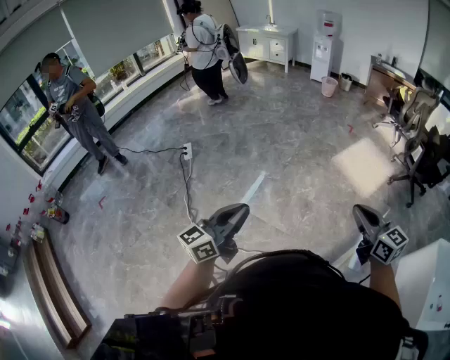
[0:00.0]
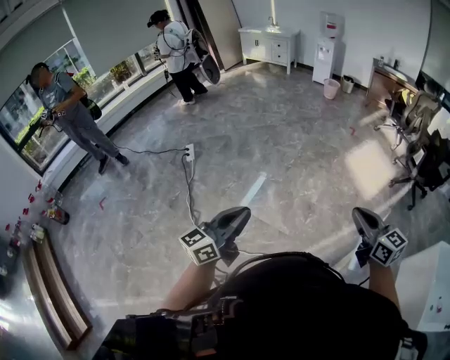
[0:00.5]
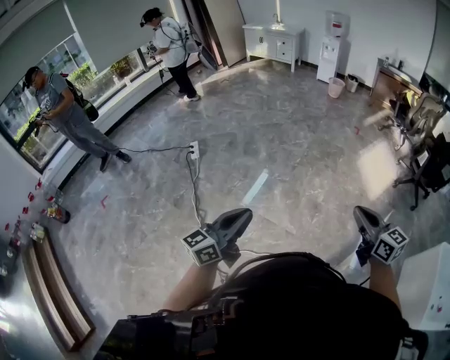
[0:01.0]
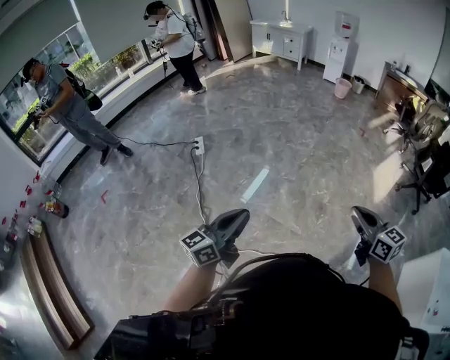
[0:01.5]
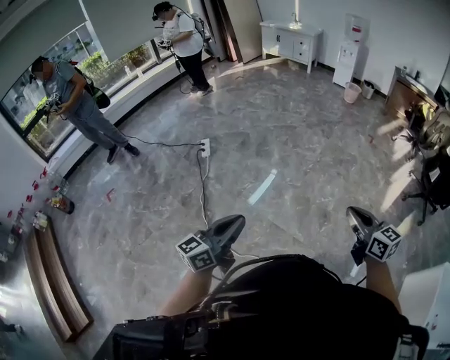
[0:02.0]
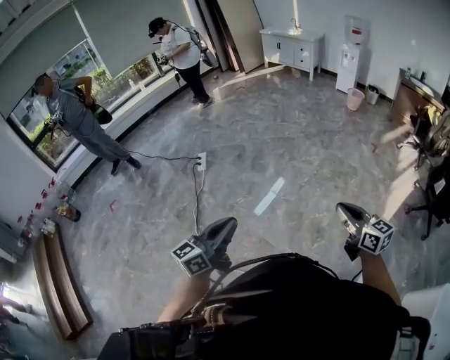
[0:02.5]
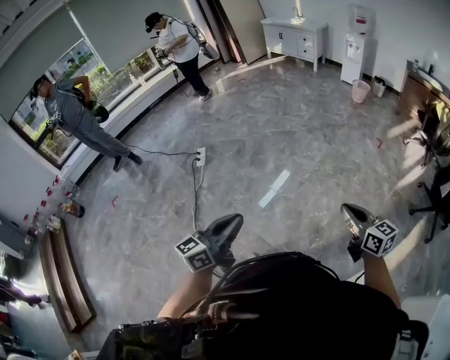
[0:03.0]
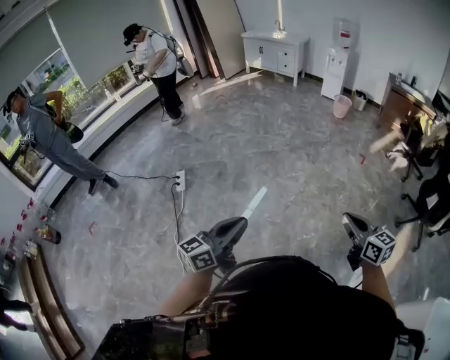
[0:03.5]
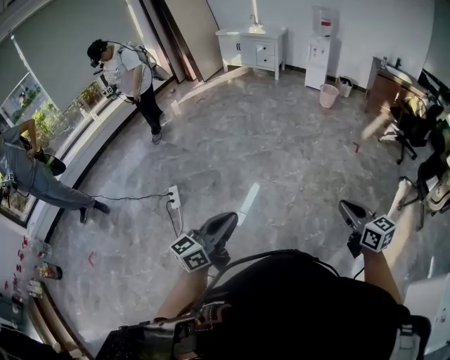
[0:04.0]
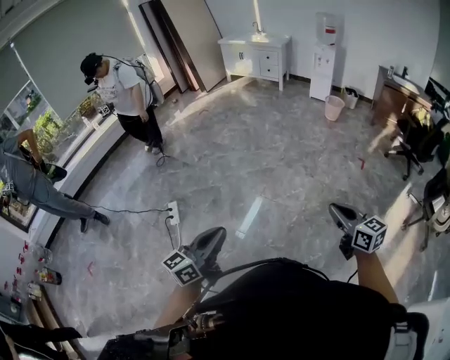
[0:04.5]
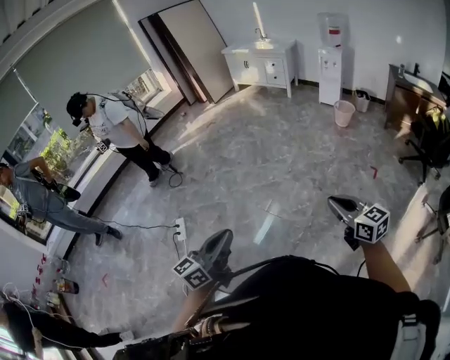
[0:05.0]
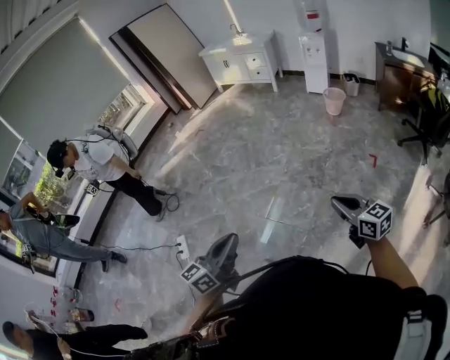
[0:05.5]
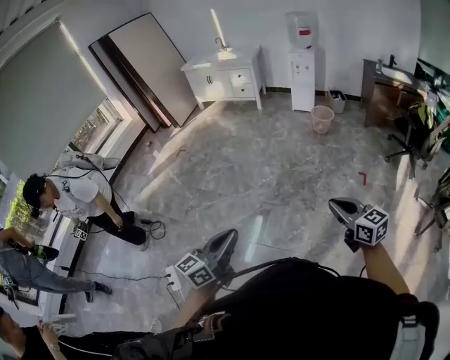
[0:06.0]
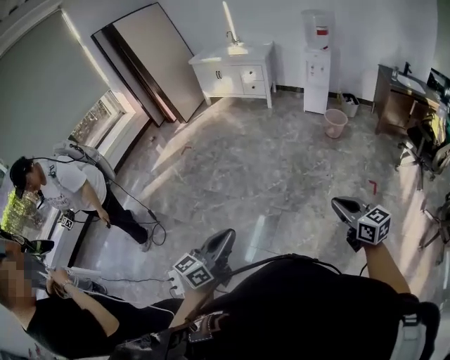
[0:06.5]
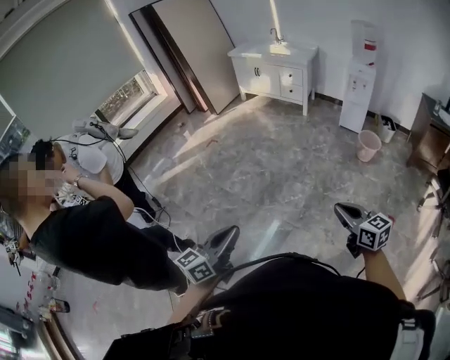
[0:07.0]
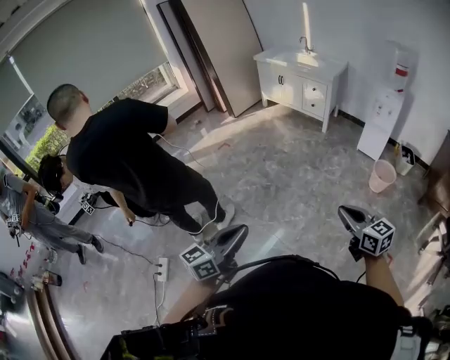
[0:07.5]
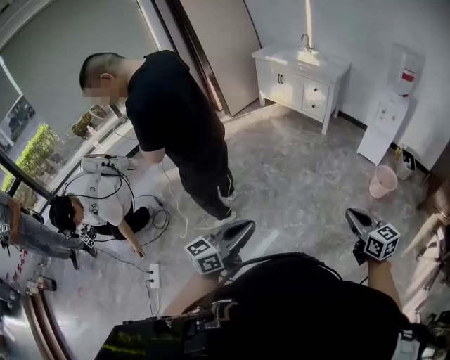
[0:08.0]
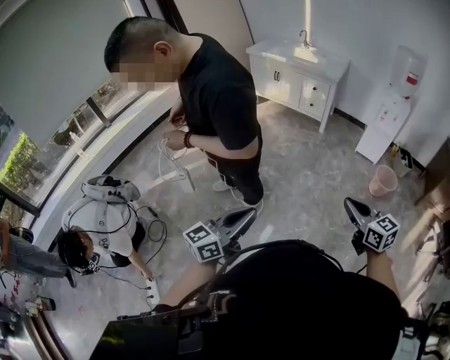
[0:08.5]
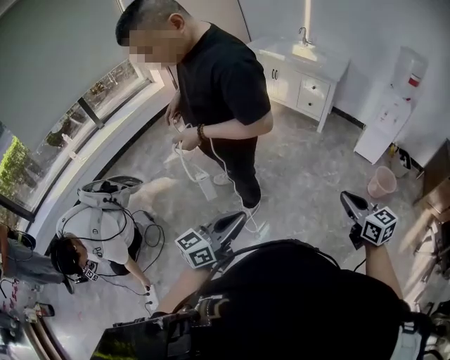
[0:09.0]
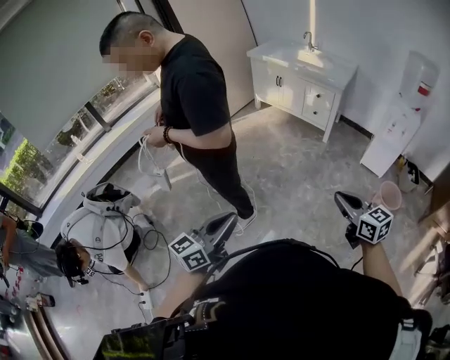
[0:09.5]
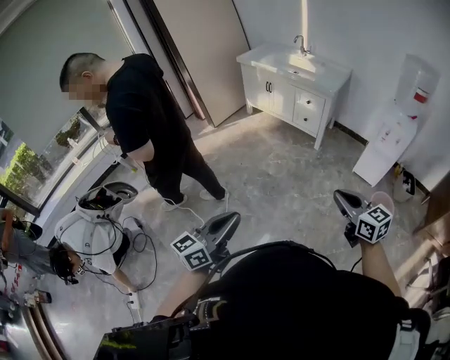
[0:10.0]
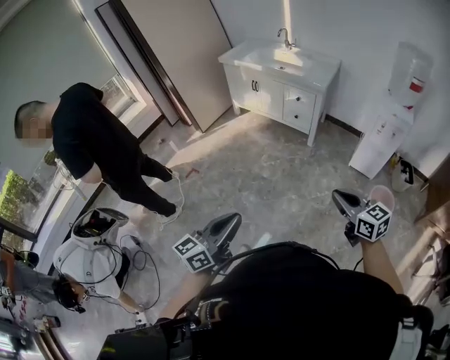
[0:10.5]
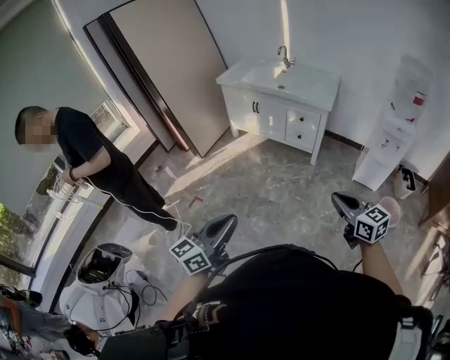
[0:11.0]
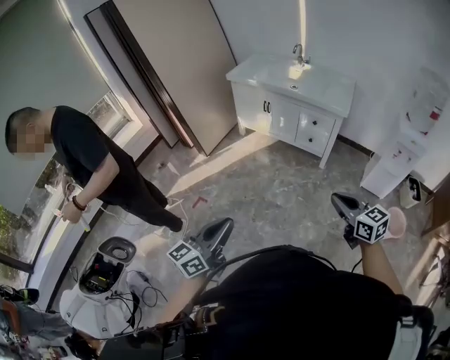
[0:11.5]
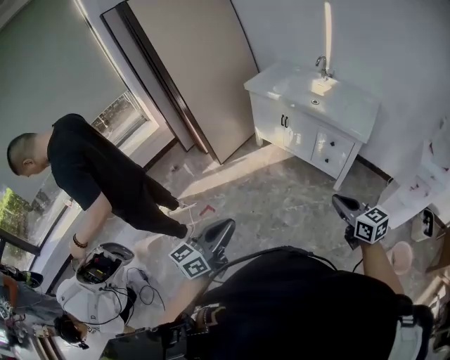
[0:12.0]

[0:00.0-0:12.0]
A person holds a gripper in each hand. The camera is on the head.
0:00.0 to 0:02.0: The right gripper is displaced to the left and forward by some 20 cm. The left gripper travels to the left by some 20 cm.
0:02.0 to 0:04.0: The two grippers travel together, forward, some 50 cm.
0:04.0 to 0:06.0: Both grippers are carried forward, some 60 cm.
0:06.0 to 0:08.0: The pair of grippers is taken forward, about 50 cm.
0:08.0 to 0:10.0: Both grippers travel together forward, roughly 40 cm.
0:10.0 to 0:12.0: The two grippers travel together, forward, about 50 cm.

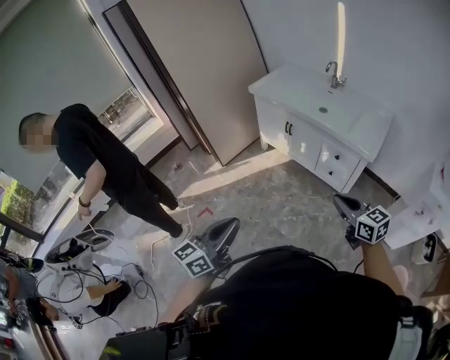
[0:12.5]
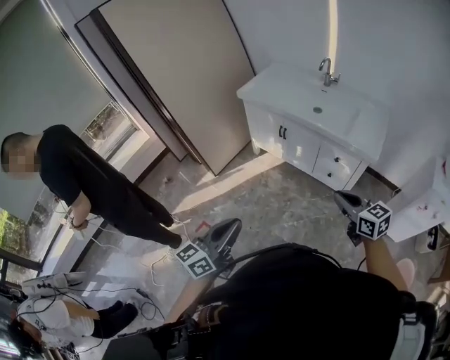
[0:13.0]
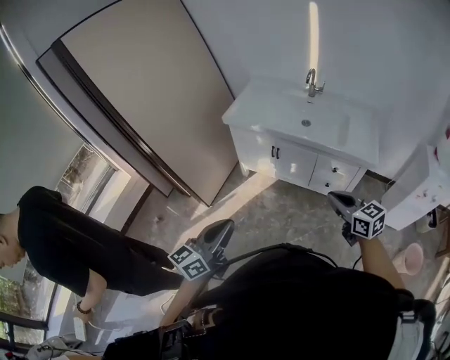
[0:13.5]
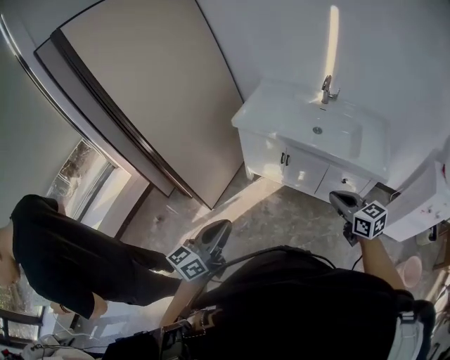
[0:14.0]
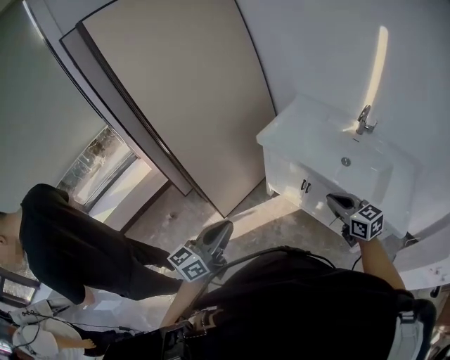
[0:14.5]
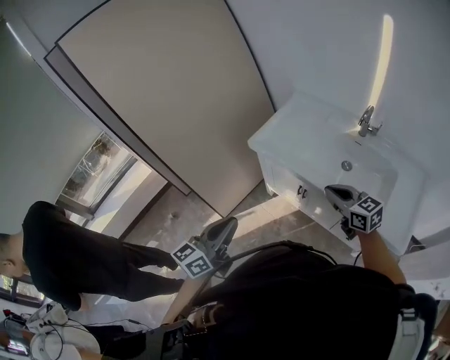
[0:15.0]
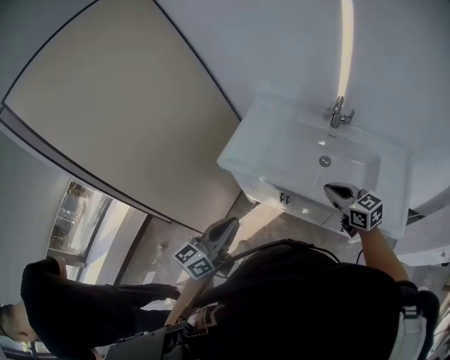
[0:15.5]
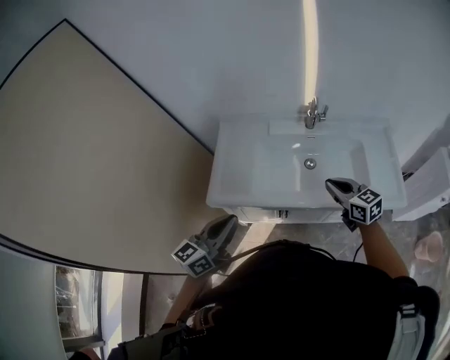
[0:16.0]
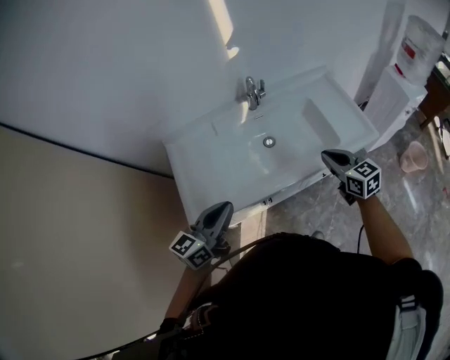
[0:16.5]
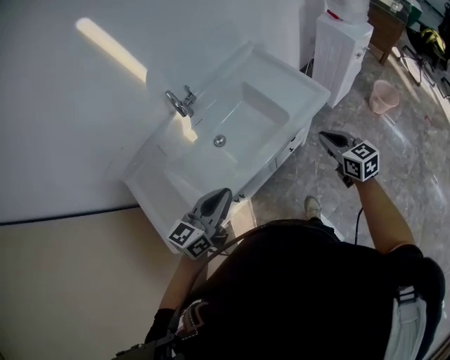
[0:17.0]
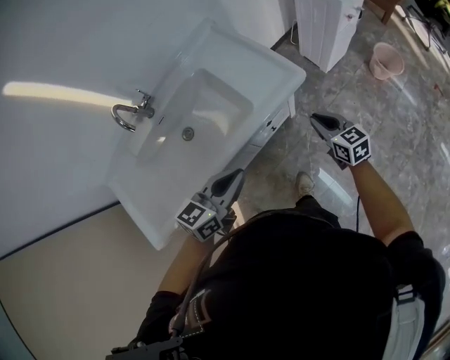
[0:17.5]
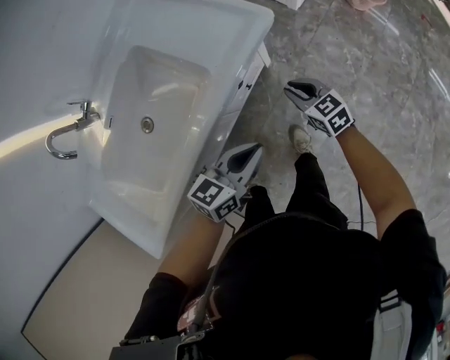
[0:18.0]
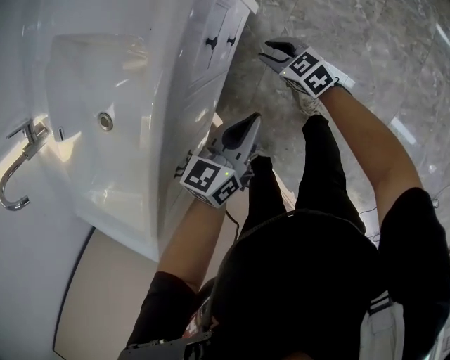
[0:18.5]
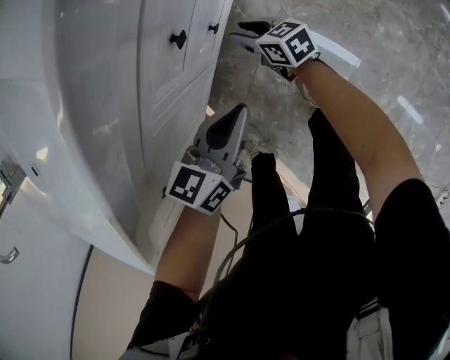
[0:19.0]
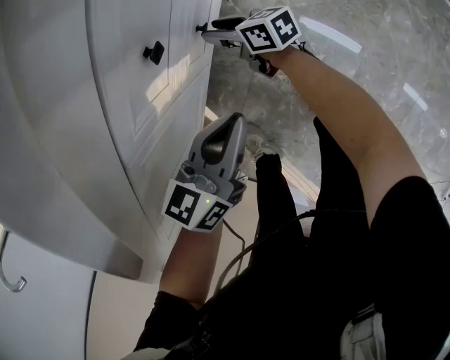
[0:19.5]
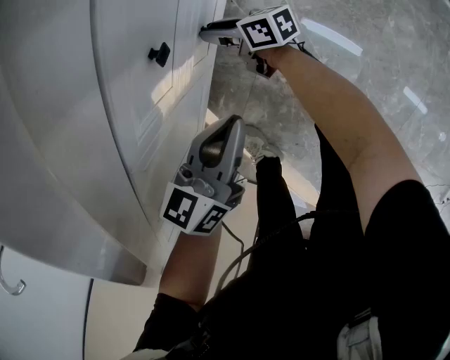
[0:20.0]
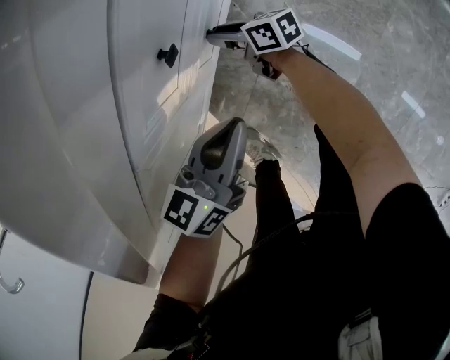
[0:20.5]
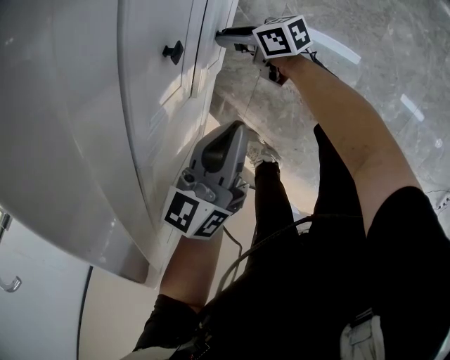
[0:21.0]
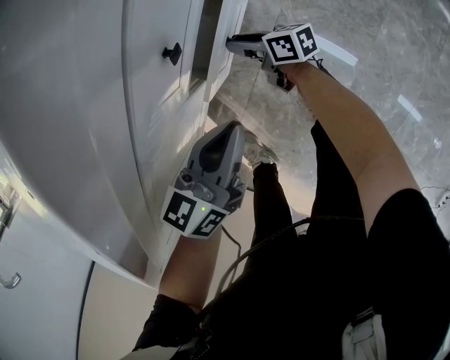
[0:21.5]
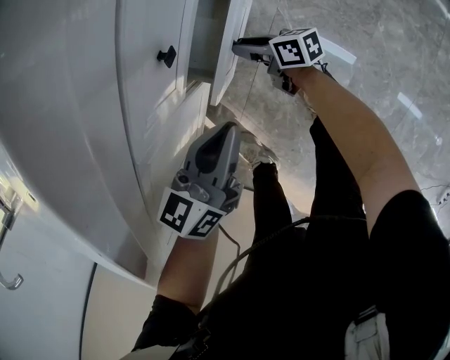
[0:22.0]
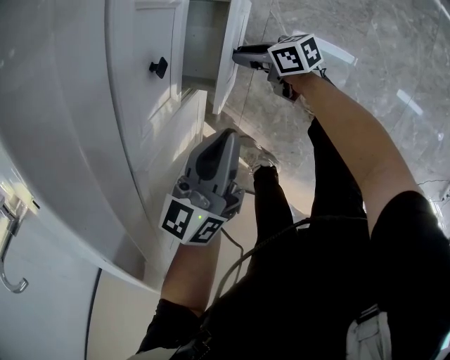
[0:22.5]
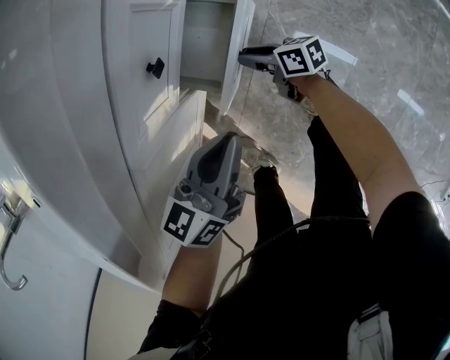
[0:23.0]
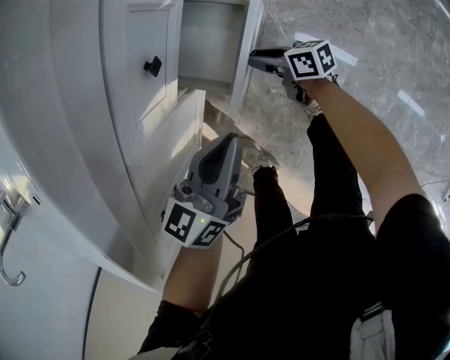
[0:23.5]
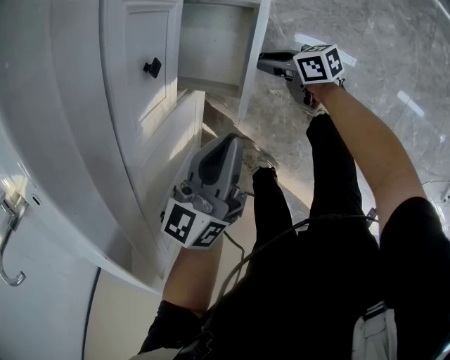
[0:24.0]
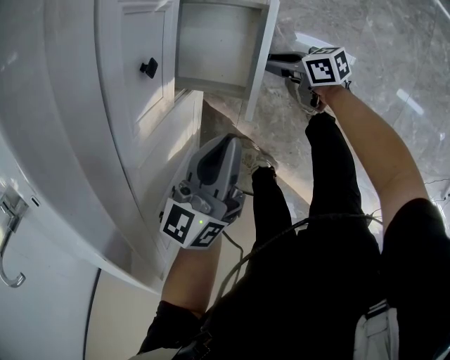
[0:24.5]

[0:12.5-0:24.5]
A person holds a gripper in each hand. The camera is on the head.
0:12.5 to 0:14.5: Both grippers are carried forward, about 50 cm.
0:14.5 to 0:16.5: The left gripper changes place by about 50 cm, and turns by roughly 60 degrees. Meanwhile the right gripper changes place by about 25 cm, and rotates about 60 degrees.
0:16.5 to 0:18.5: The left gripper changes place by roughly 70 cm, and rotates approximately 50 degrees. The right gripper shifts roughly 60 cm downward, rotates roughly 30 degrees, and opens its fingers.
0:18.5 to 0:20.5: The left gripper is displaced downward by roughly 10 cm, while the right gripper is displaced downward, to the left and forward by some 20 cm, and turns by roughly 50 degrees.
0:20.5 to 0:22.5: The right gripper travels backward and to the right by about 10 cm.
0:22.5 to 0:24.5: The right gripper goes about 10 cm to the right and backward.

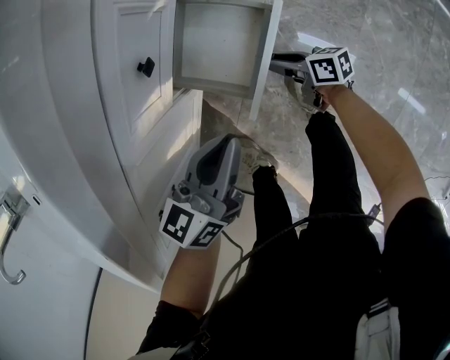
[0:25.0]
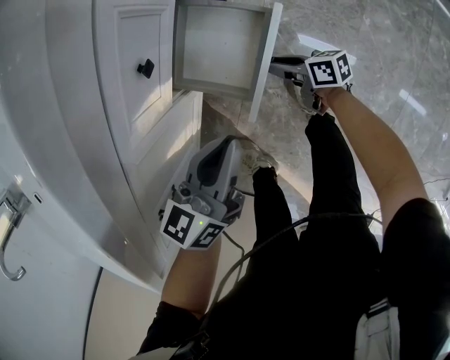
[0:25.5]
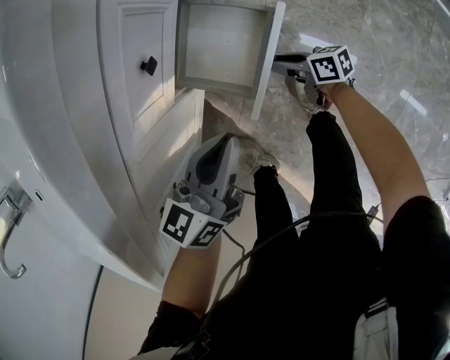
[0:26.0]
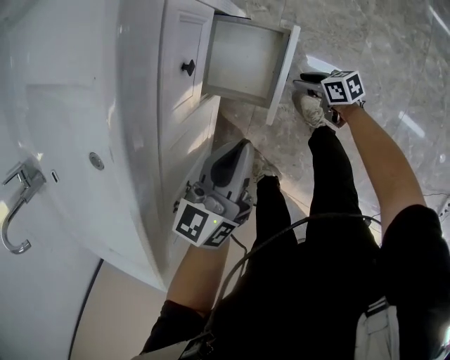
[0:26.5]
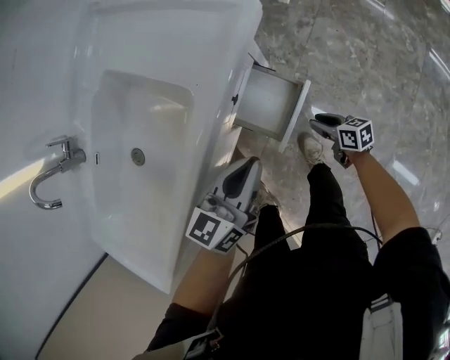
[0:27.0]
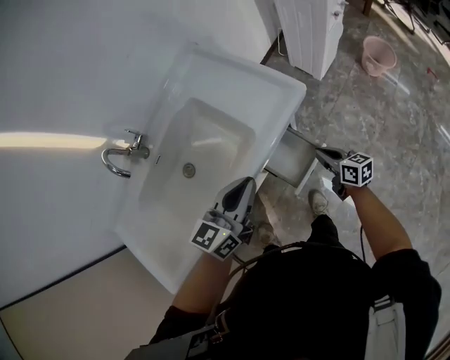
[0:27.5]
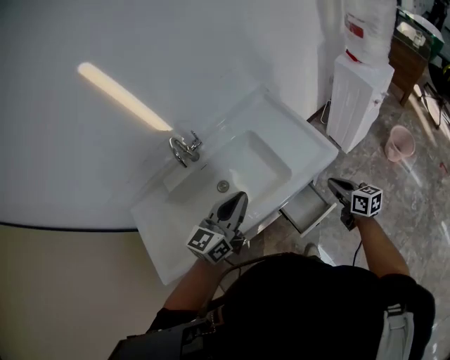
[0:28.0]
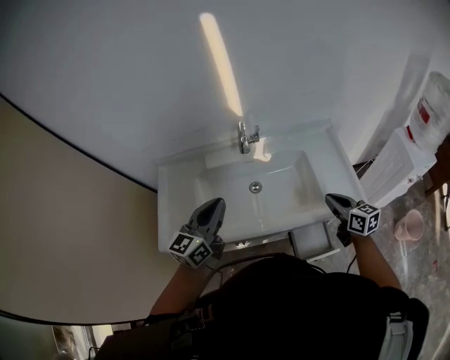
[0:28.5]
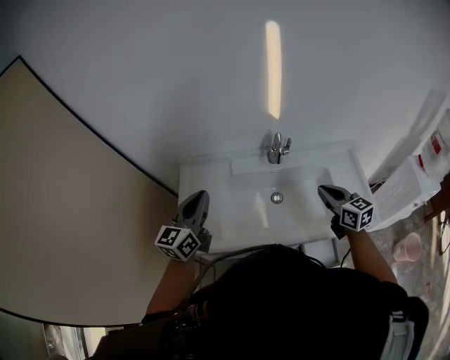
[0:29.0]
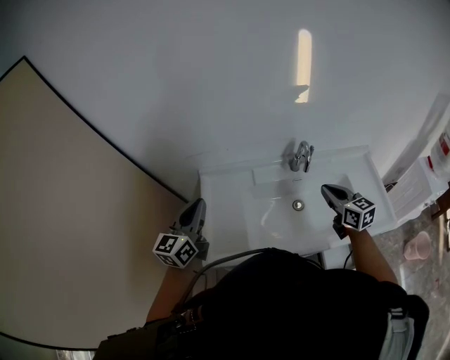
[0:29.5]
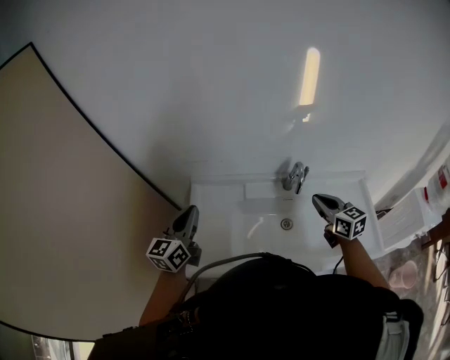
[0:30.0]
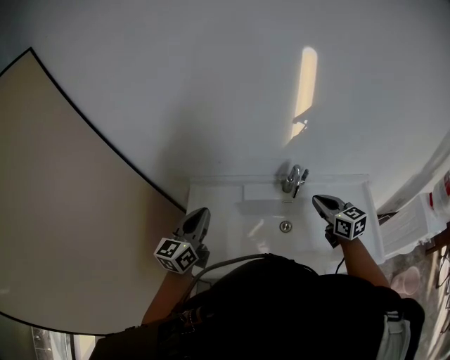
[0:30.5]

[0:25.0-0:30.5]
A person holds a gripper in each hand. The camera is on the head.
0:25.0 to 0:27.0: Both grippers travel together upward, roughly 20 cm.
0:27.0 to 0:28.5: The right gripper travels upward by some 50 cm, rotates around the line of its fingers by some 40 degrees, counterclockwise from behind, and closes its fingers; the left gripper moves some 50 cm, and turns by roughly 60 degrees.
0:28.5 to 0:30.5: The right gripper is displaced forward and to the left by some 30 cm; the left gripper travels to the left and forward by roughly 25 cm.
